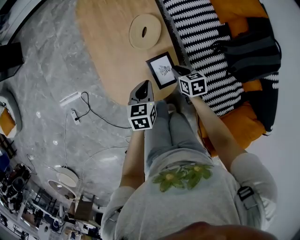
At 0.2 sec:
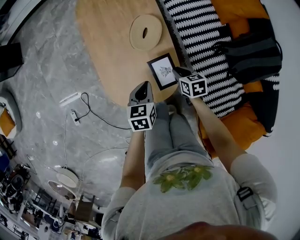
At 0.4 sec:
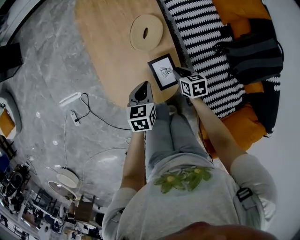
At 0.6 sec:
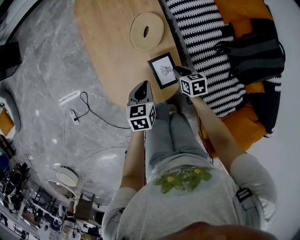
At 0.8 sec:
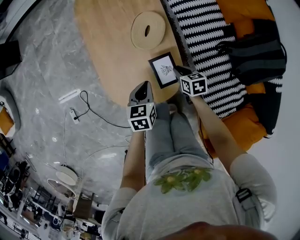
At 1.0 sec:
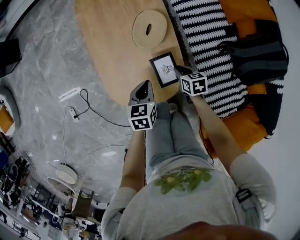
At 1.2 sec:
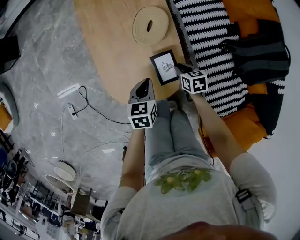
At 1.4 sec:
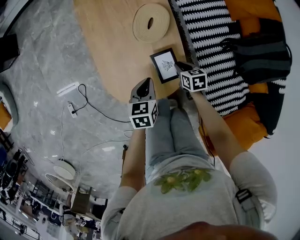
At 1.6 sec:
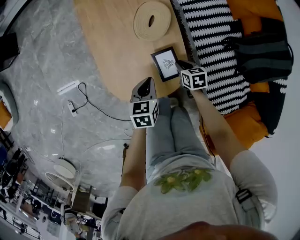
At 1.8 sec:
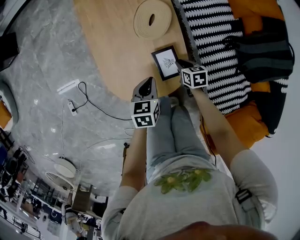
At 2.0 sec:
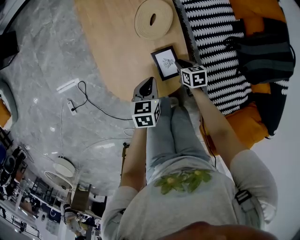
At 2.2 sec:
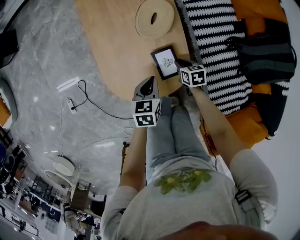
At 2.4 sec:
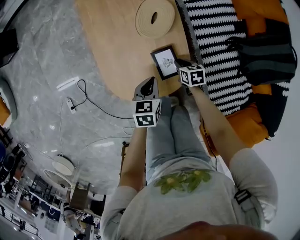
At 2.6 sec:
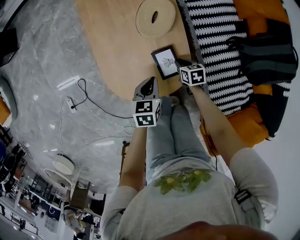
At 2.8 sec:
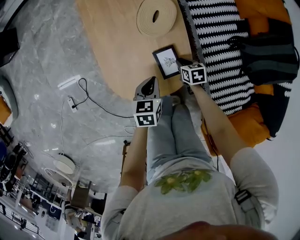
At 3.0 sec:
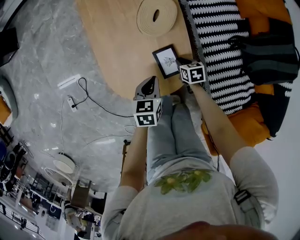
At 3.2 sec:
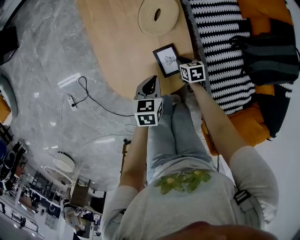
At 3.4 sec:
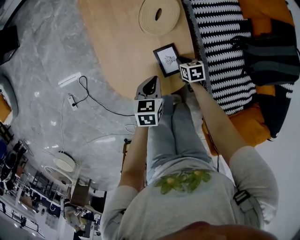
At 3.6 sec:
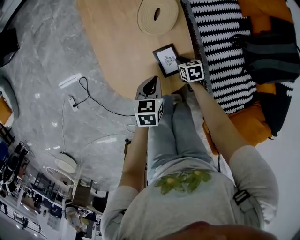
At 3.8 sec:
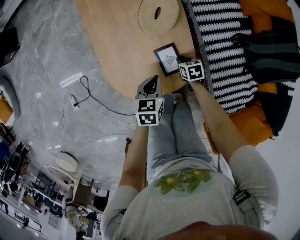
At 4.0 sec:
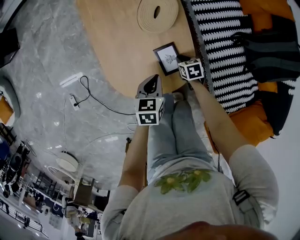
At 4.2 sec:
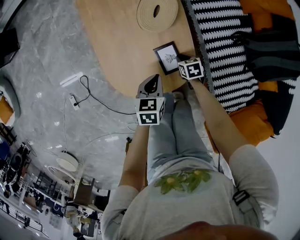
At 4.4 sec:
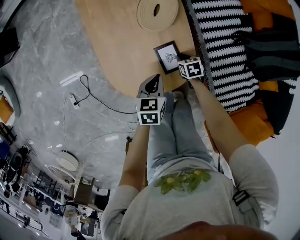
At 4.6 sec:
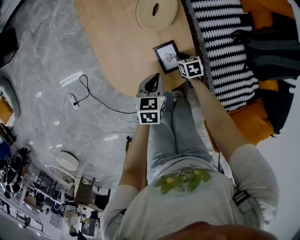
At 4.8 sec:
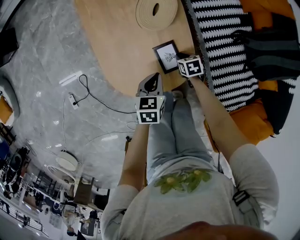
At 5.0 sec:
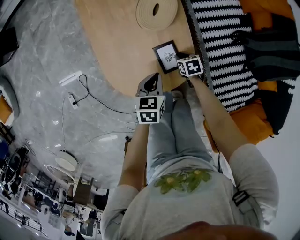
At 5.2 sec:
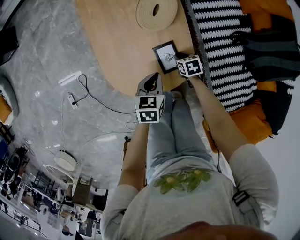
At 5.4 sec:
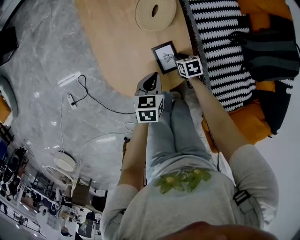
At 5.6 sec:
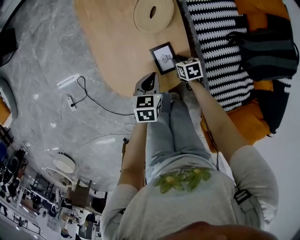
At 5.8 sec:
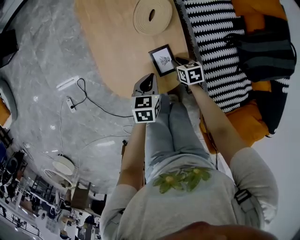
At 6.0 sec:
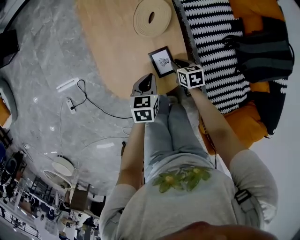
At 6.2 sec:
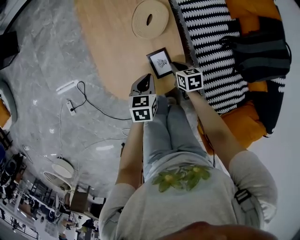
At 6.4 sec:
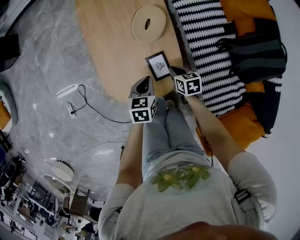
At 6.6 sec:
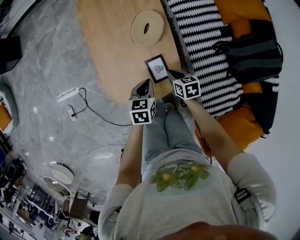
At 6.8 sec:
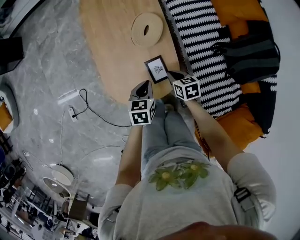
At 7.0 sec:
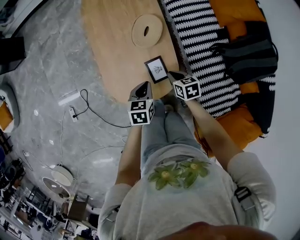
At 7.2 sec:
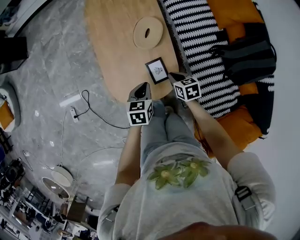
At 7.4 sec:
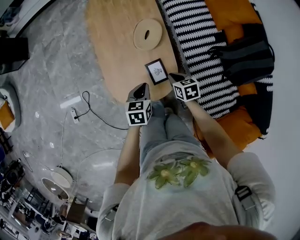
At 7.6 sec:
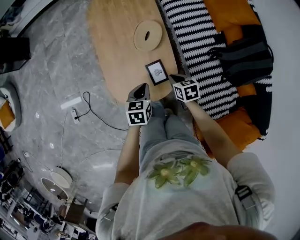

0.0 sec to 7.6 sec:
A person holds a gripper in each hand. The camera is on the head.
0.0 sec to 1.6 sec: The right gripper heads downward, covering roughly 10 cm. The left gripper shifts some 5 cm downward.
1.6 sec to 3.0 sec: The right gripper travels downward by approximately 5 cm.
3.0 sec to 4.6 sec: There are only small adjustments of the grippers.
4.6 sec to 6.0 sec: The right gripper shifts approximately 10 cm upward.
6.0 sec to 7.6 sec: Both grippers move upward, some 10 cm.

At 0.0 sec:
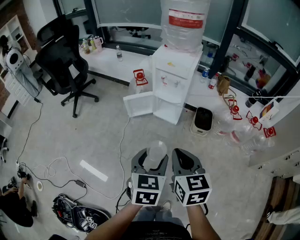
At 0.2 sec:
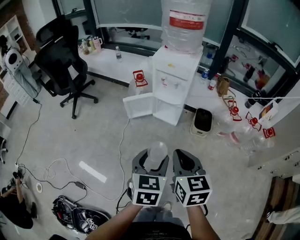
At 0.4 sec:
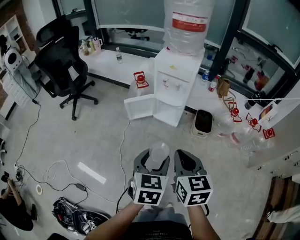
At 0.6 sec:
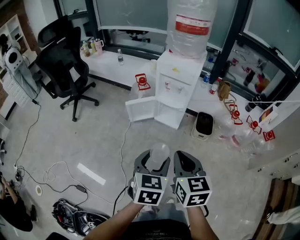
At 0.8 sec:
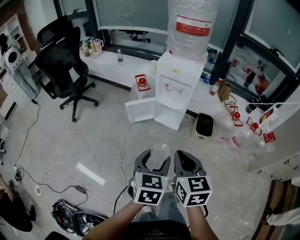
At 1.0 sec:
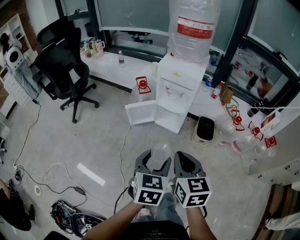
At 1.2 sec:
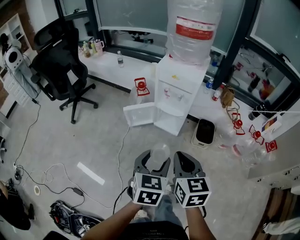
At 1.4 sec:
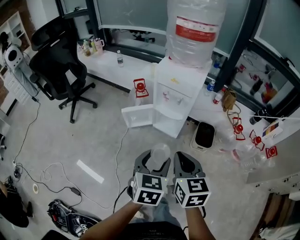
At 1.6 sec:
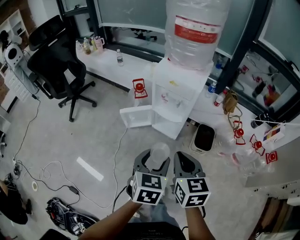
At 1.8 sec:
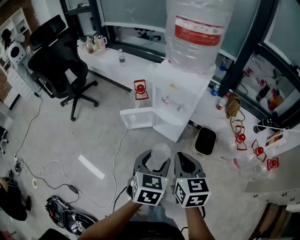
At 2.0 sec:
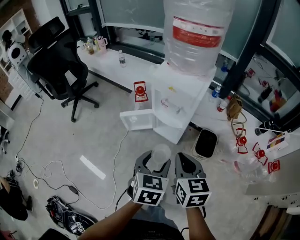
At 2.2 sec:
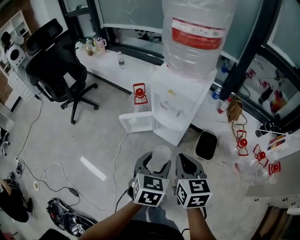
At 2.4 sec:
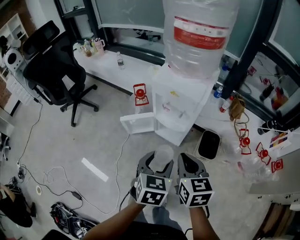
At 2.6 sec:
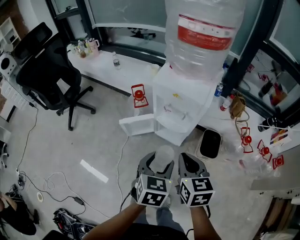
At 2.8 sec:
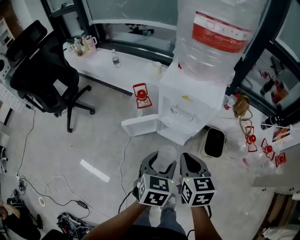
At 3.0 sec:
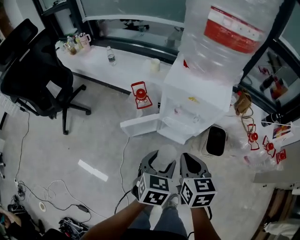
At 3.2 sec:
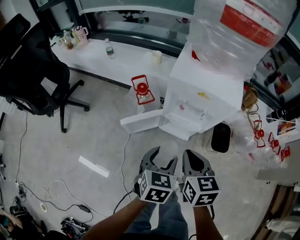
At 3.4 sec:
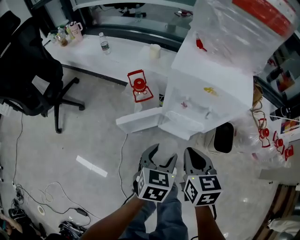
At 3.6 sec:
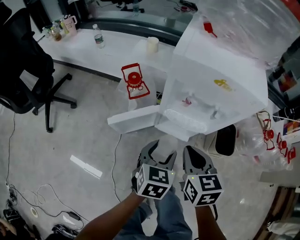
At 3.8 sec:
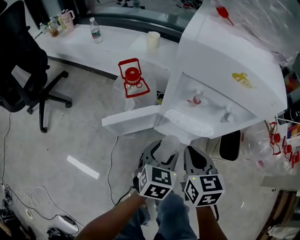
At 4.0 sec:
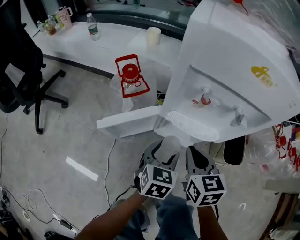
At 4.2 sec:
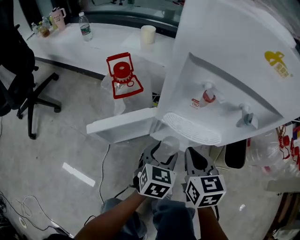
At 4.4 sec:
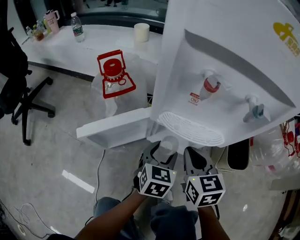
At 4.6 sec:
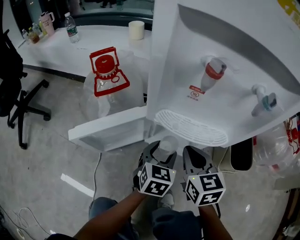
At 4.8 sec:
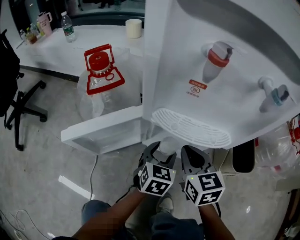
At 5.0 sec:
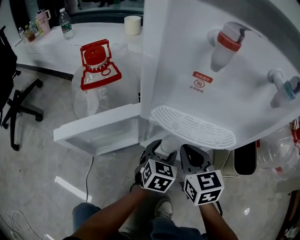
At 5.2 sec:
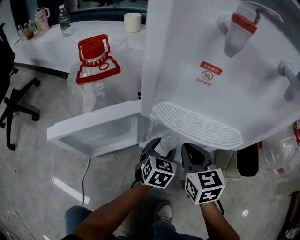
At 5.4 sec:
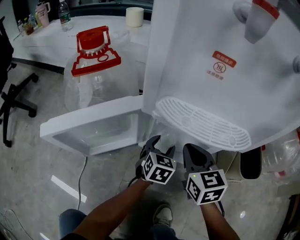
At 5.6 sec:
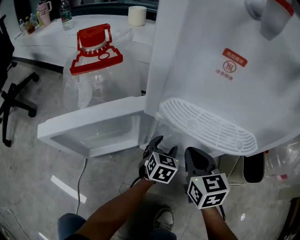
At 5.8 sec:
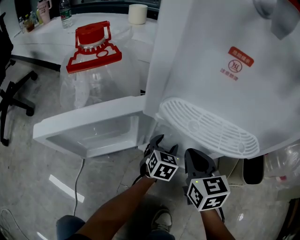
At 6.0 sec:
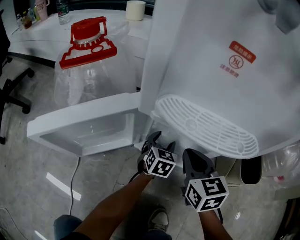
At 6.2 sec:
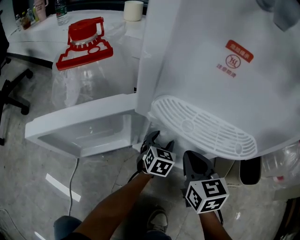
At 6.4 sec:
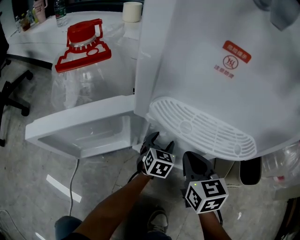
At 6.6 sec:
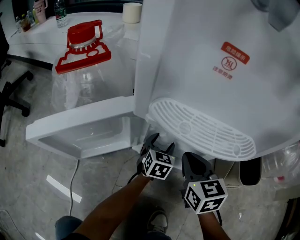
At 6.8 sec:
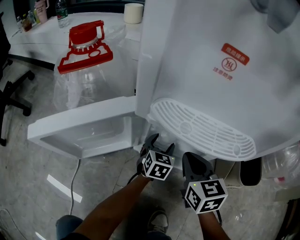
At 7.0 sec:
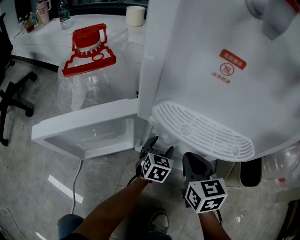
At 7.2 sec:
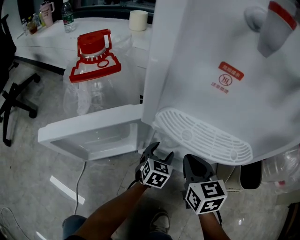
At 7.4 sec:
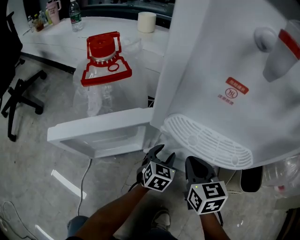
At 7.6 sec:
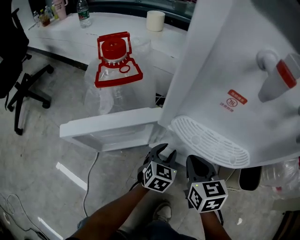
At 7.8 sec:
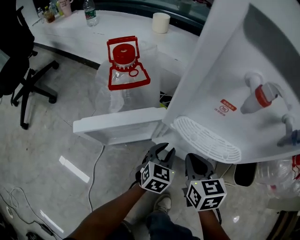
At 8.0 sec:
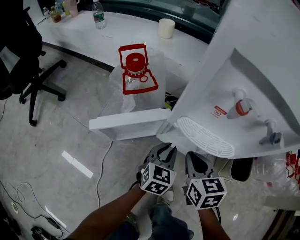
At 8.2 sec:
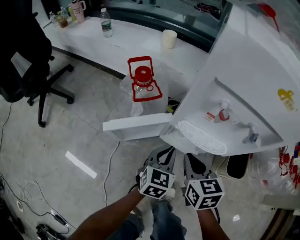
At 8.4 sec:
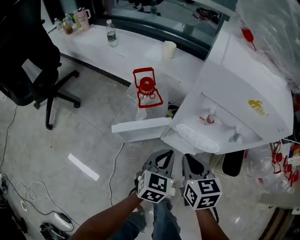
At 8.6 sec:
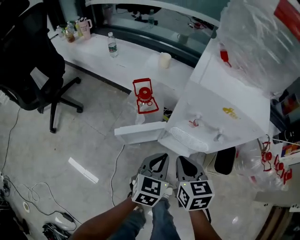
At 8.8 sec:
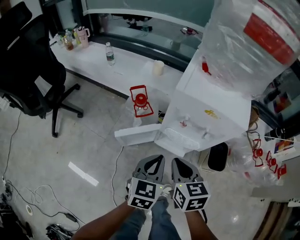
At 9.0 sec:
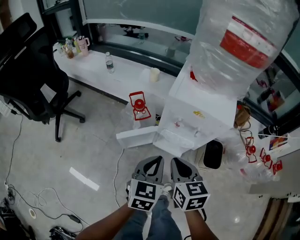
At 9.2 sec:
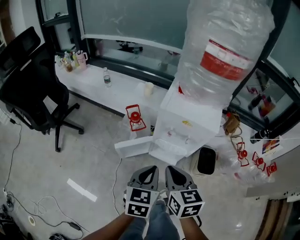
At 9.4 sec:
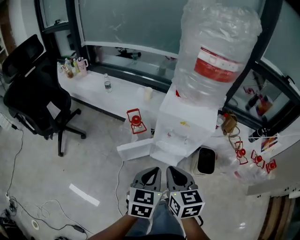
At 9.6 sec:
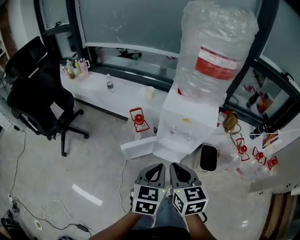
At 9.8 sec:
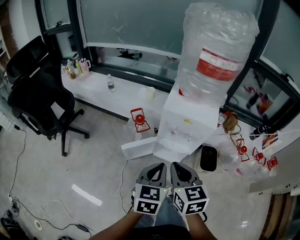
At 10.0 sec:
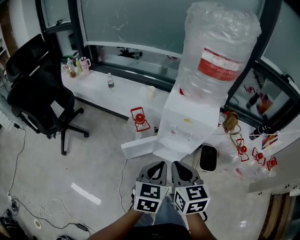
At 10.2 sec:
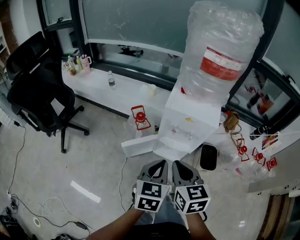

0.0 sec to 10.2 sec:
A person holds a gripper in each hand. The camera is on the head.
0.0 sec to 1.4 sec: Both grippers travel together forward, some 15 cm.
1.4 sec to 3.0 sec: Both grippers move forward and downward, some 25 cm.
3.0 sec to 4.4 sec: The grippers both shift downward and forward by some 40 cm.
4.4 sec to 5.8 sec: The left gripper travels downward and forward by about 25 cm. Meanwhile the right gripper is displaced downward and forward by approximately 15 cm.
5.8 sec to 7.2 sec: There are only small adjustments of the grippers.
7.2 sec to 8.8 sec: The grippers both shift upward by approximately 50 cm. The left gripper closes up.
8.8 sec to 10.2 sec: The grippers both shift upward and backward by approximately 20 cm.
